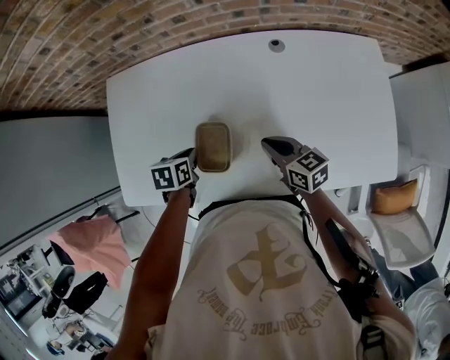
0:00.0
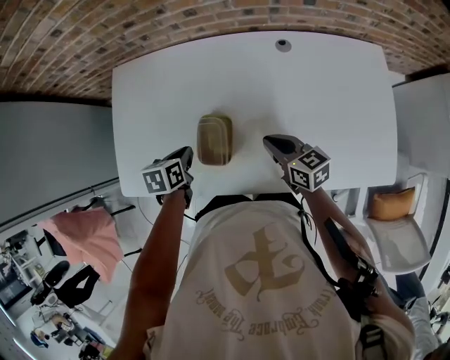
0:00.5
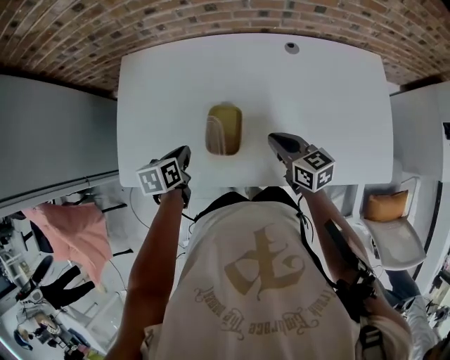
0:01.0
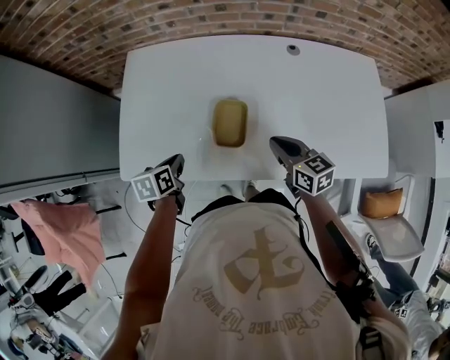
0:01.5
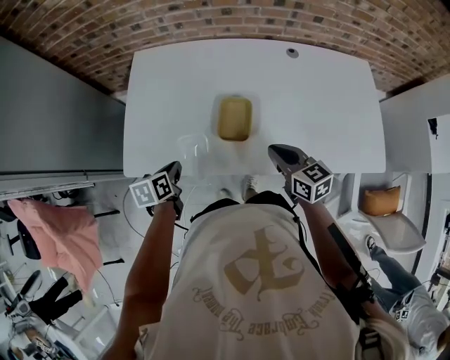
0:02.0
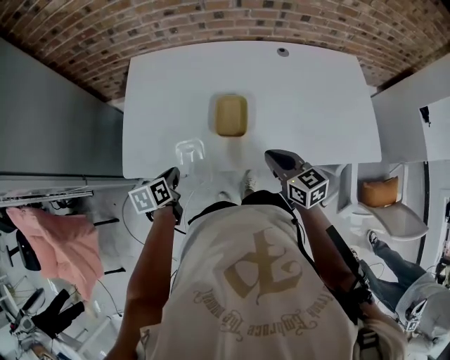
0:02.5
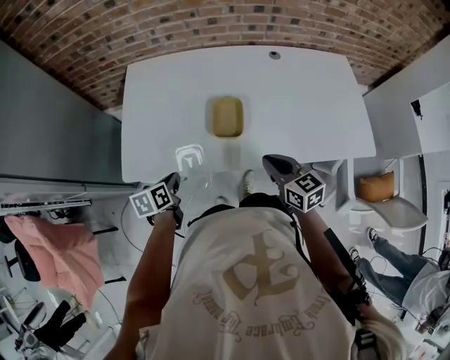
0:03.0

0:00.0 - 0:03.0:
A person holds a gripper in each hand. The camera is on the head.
0:00.0 - 0:01.5: The right gripper shifts approximately 10 cm backward and to the left; the left gripper shifts some 15 cm to the left and backward.
0:01.5 - 0:03.0: The grippers both shift backward and to the left by about 10 cm.

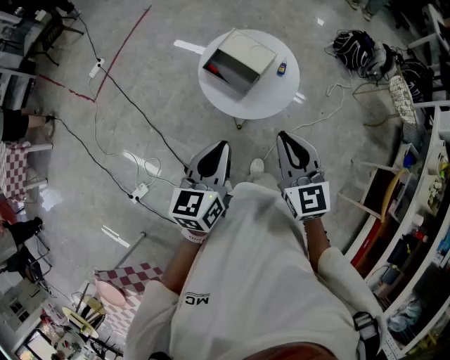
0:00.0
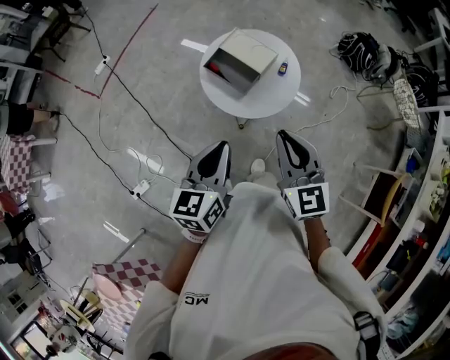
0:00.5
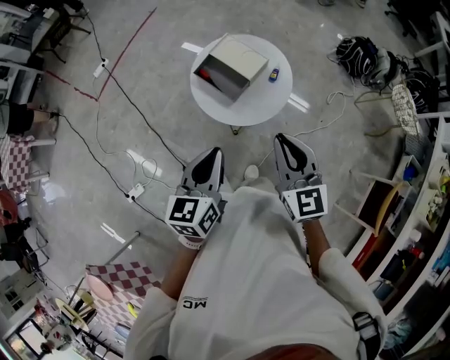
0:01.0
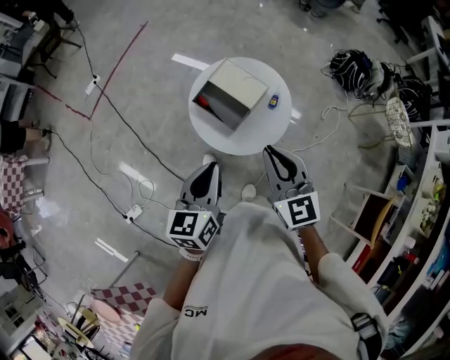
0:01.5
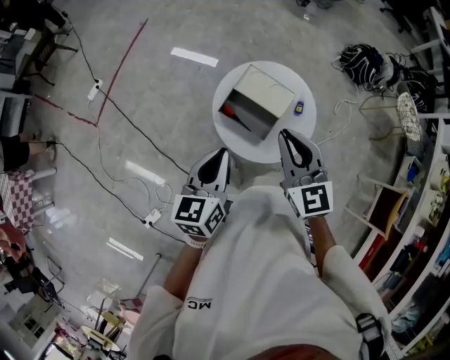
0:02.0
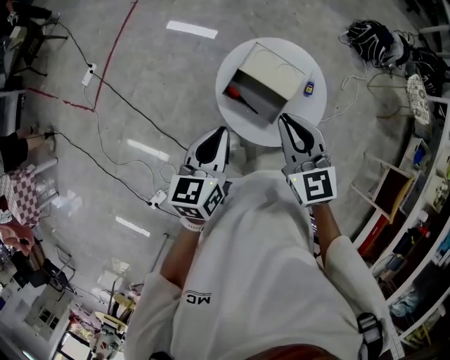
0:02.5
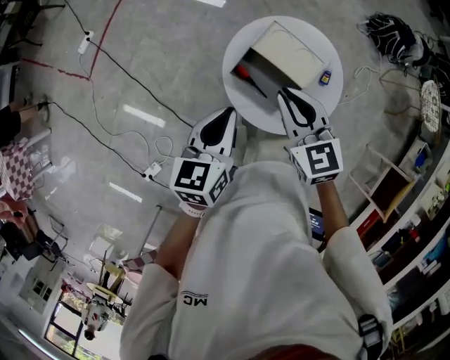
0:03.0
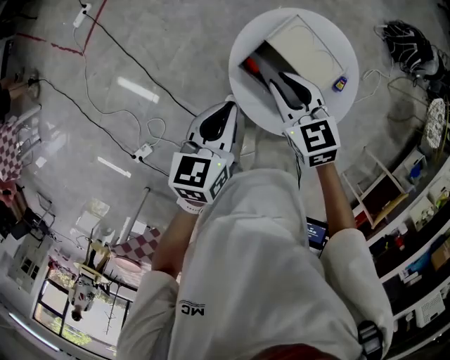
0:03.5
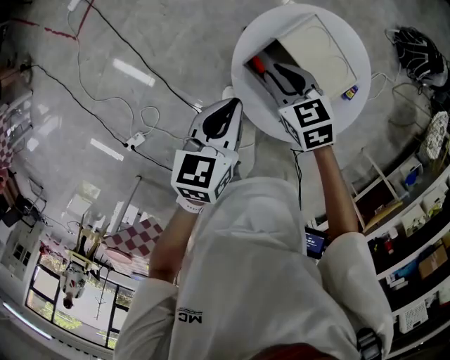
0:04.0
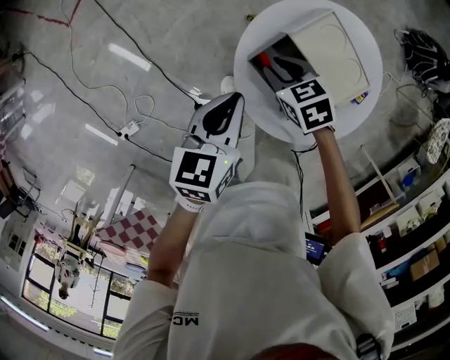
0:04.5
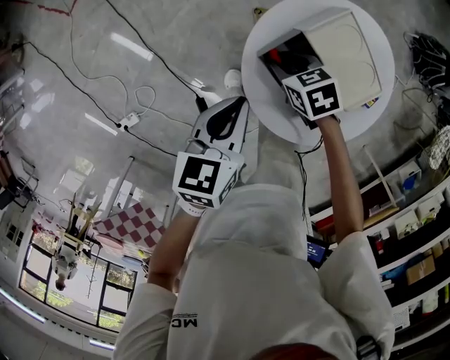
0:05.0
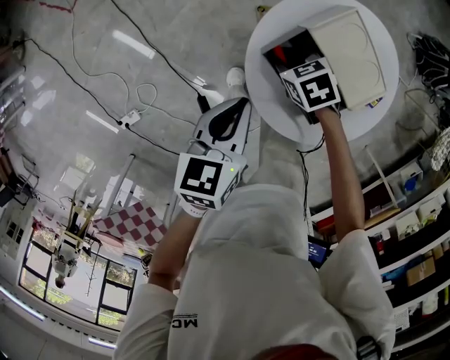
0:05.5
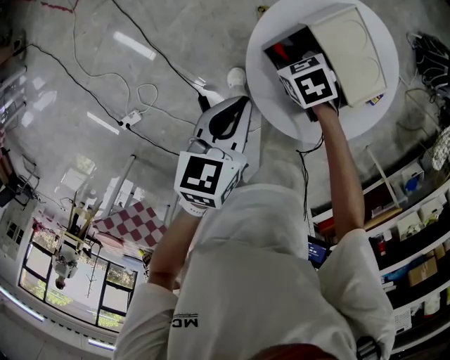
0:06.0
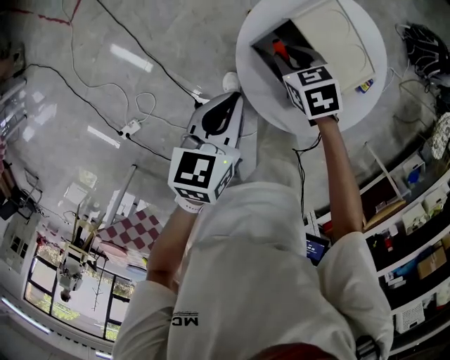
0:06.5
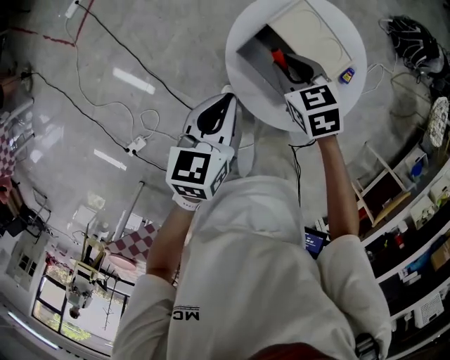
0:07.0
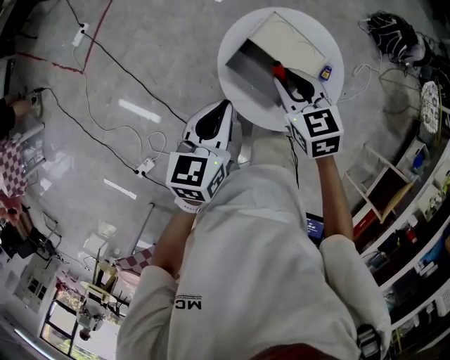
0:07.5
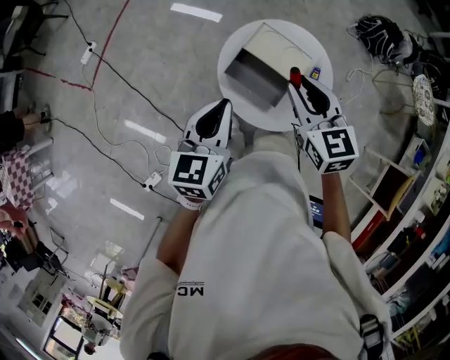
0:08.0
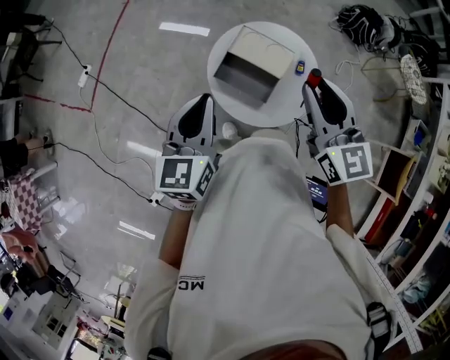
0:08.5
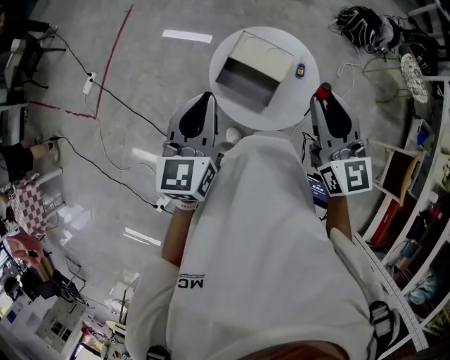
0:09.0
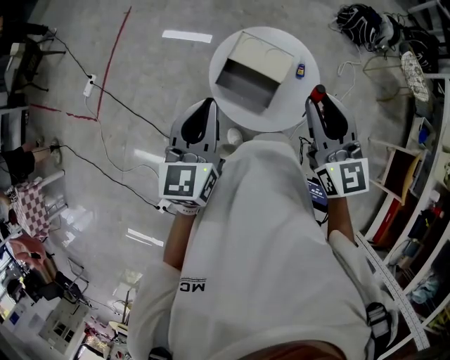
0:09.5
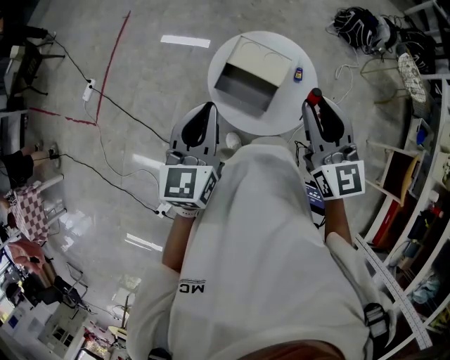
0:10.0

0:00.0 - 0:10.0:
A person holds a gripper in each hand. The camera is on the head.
0:00.0 - 0:02.0: Both grippers move forward, approximately 20 cm.
0:02.0 - 0:04.0: The left gripper moves downward and forward, approximately 20 cm; the right gripper moves downward and forward, roughly 30 cm, and points its fingers about 30 degrees further downward.
0:04.0 - 0:06.0: The left gripper is displaced downward by approximately 5 cm. The right gripper heads downward, covering about 15 cm, and swivels roughly 20 degrees.
0:06.0 - 0:08.0: The right gripper is displaced upward by roughly 40 cm, and tilts its fingers about 40 degrees upward, while the left gripper is displaced upward by some 20 cm, and rotates approximately 20 degrees.
0:08.0 - 0:10.0: The right gripper is displaced upward, backward and to the right by some 15 cm, and swivels approximately 20 degrees; the left gripper travels upward by some 5 cm.

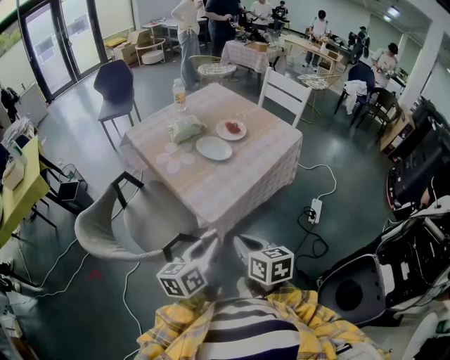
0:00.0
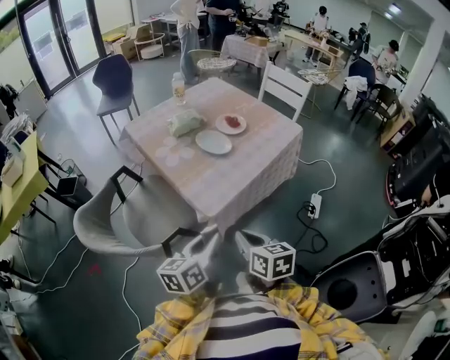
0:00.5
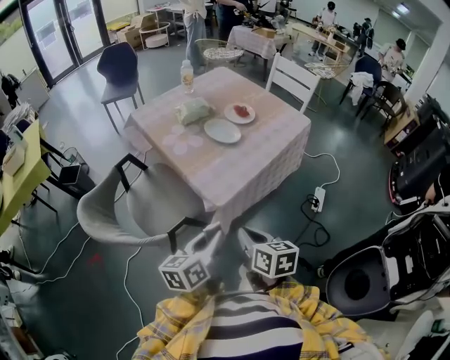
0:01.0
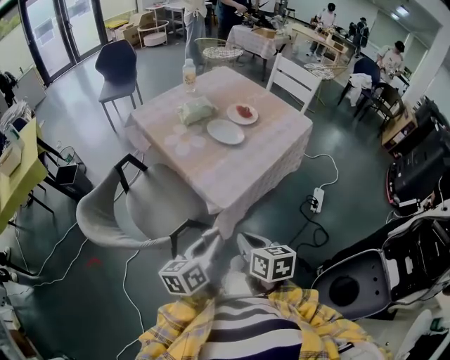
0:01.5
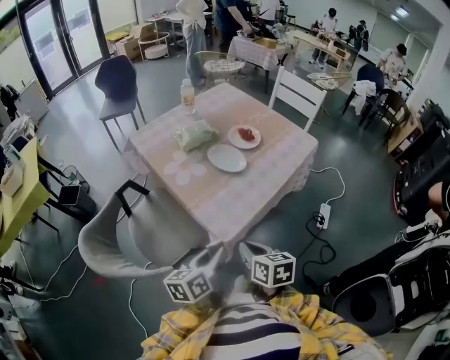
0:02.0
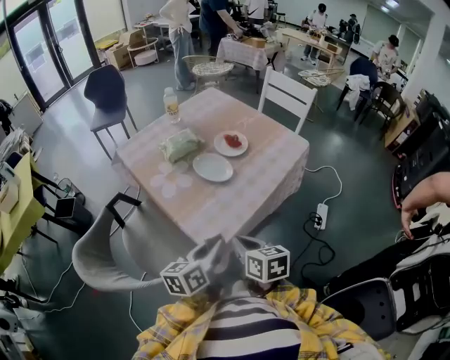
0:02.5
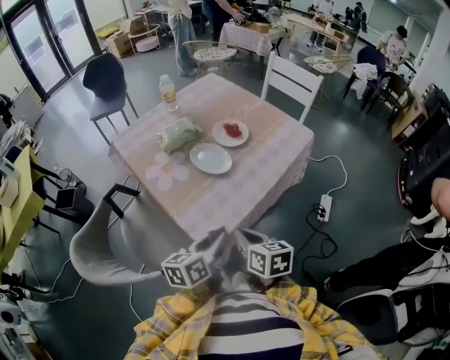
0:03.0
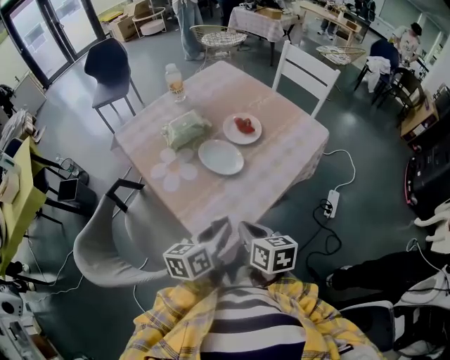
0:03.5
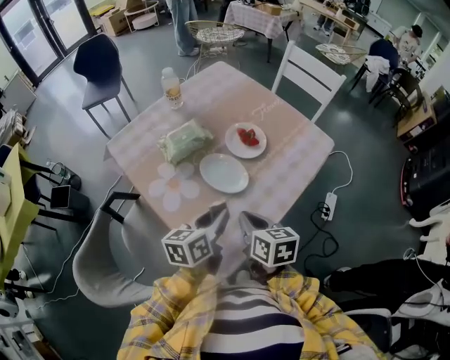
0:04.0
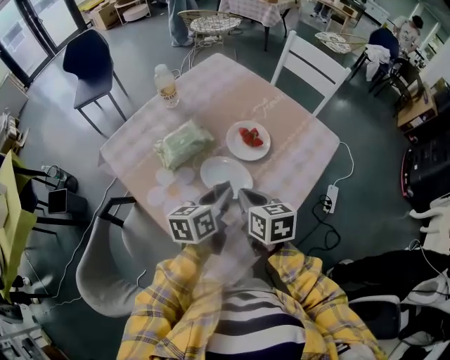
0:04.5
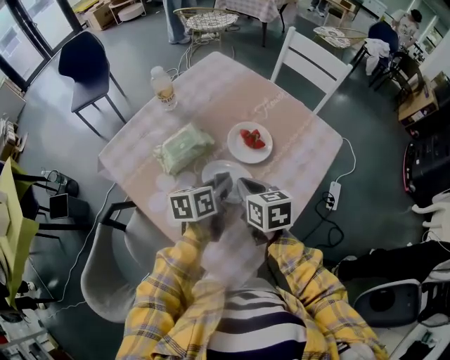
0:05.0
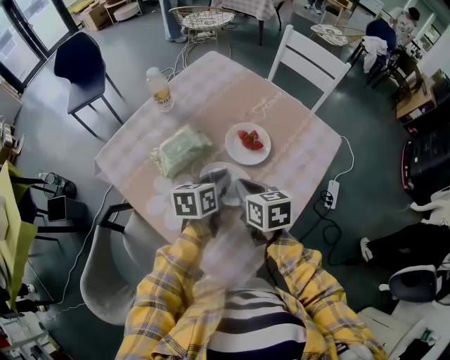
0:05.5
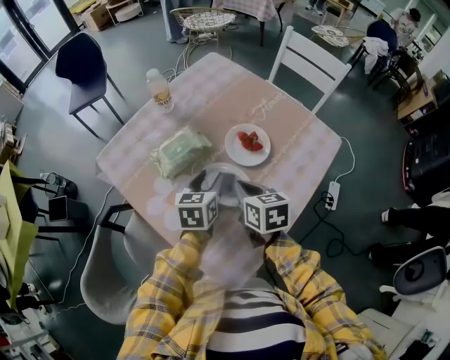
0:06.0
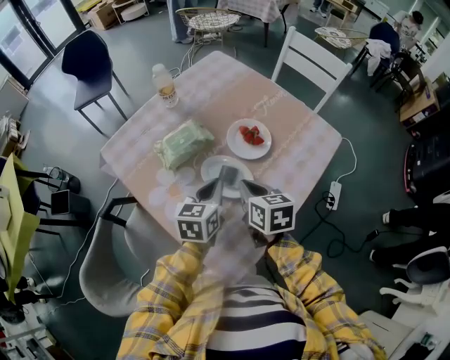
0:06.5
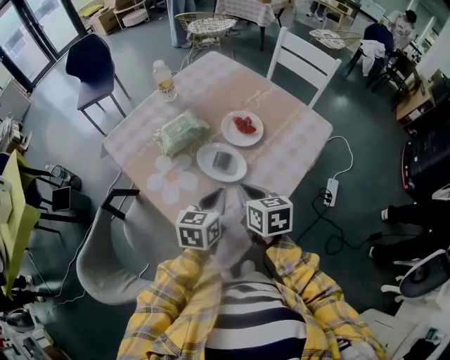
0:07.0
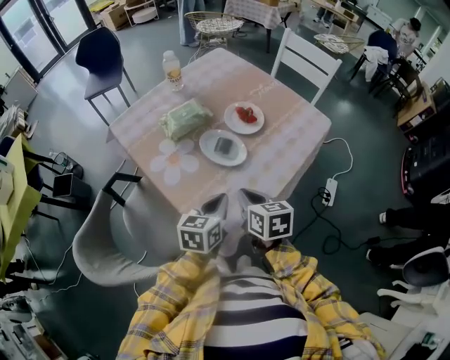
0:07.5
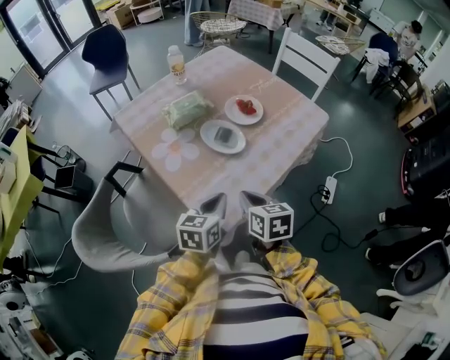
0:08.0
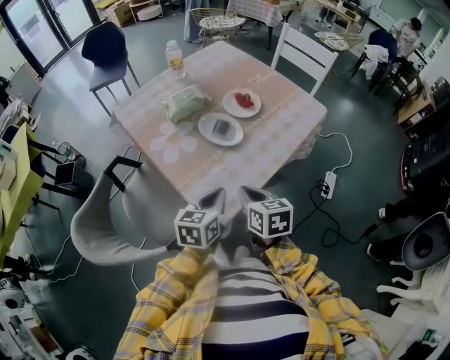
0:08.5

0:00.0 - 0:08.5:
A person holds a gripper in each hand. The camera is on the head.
0:00.0 - 0:02.0: Both grippers travel together forward, approximately 5 cm.
0:02.0 - 0:04.0: Both grippers travel together forward, roughly 20 cm.
0:04.0 - 0:06.5: The two grippers go approximately 10 cm forward. The left gripper closes its fingers.
0:06.5 - 0:08.5: Both grippers travel together backward, roughly 20 cm.

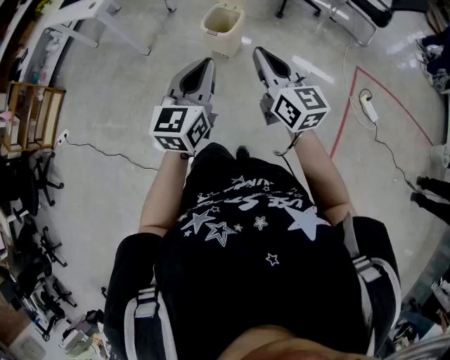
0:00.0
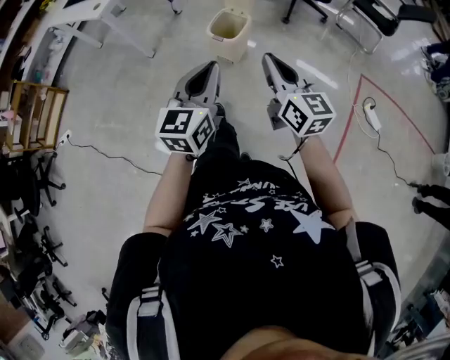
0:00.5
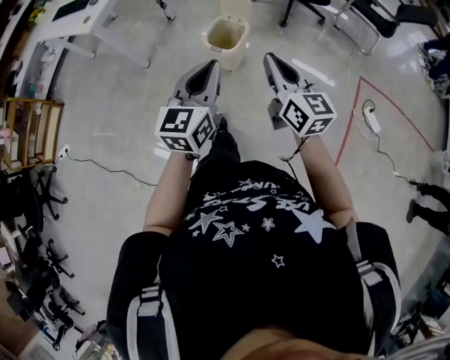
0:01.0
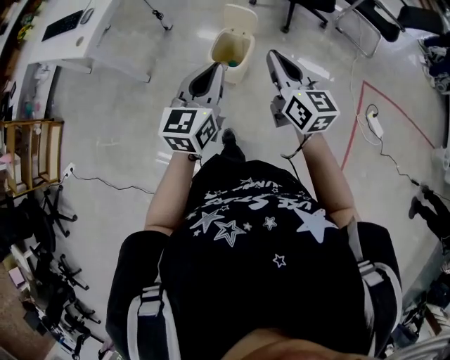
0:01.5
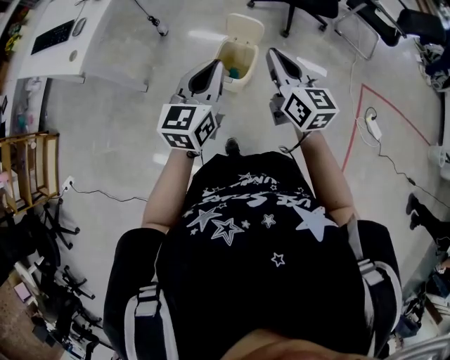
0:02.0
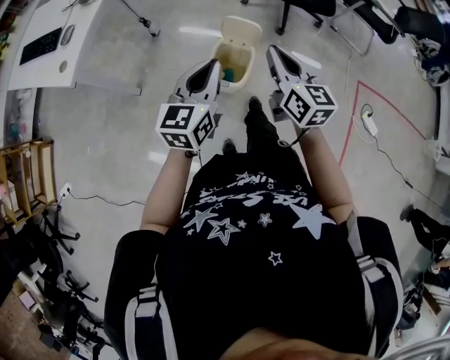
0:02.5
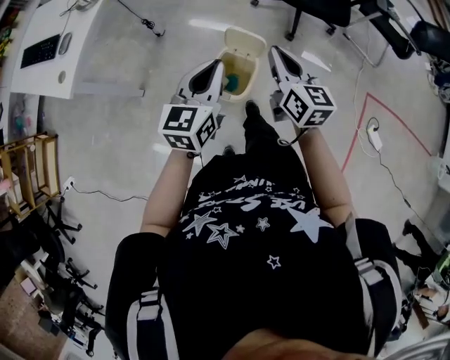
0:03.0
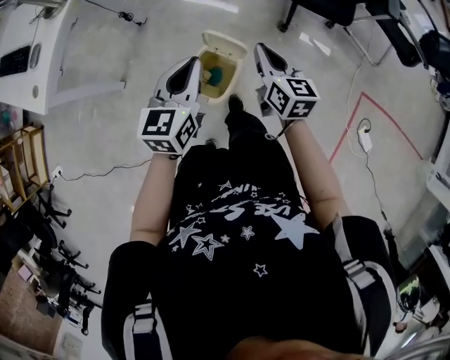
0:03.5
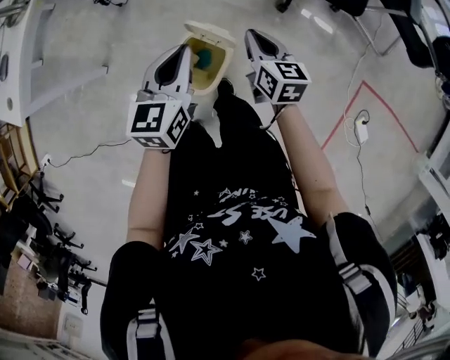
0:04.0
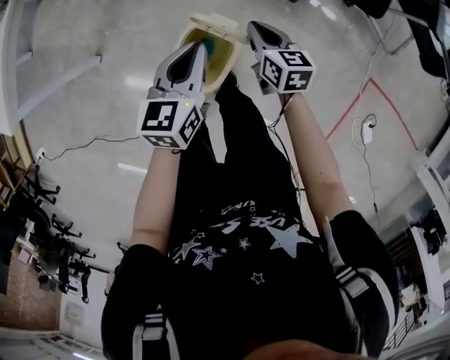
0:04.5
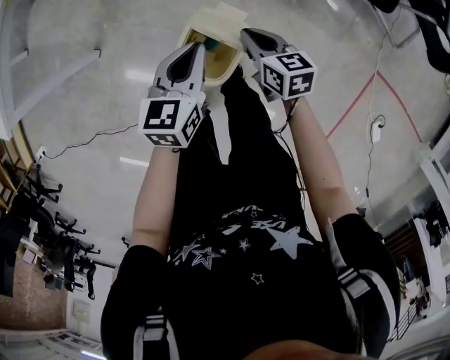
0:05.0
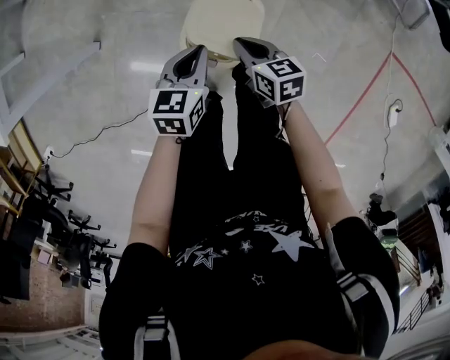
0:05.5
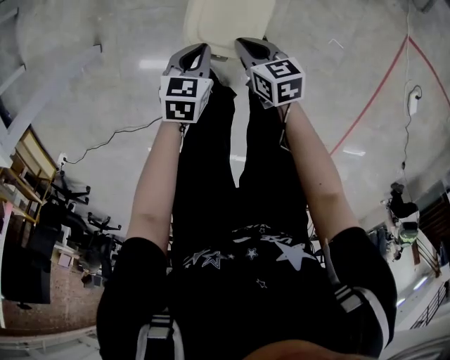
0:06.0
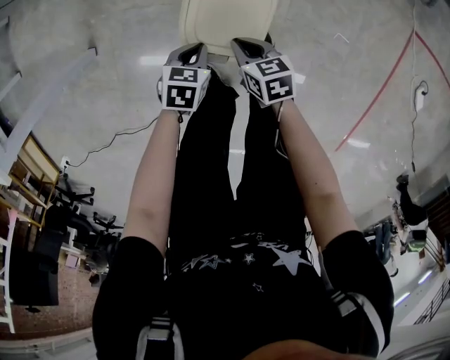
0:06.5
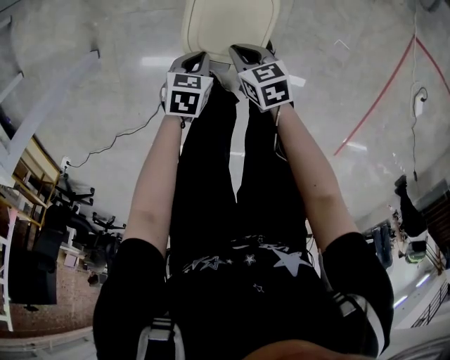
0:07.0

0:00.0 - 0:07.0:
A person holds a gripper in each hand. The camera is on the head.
0:00.0 - 0:02.0: The grippers both shift forward by some 35 cm.
0:02.0 - 0:03.5: The left gripper heads forward, covering some 25 cm. The right gripper heads forward and downward, covering approximately 30 cm.
0:03.5 - 0:05.0: Both grippers move downward, roughly 20 cm. The right gripper swivels about 30 degrees.
0:05.0 - 0:07.0: The left gripper travels downward by approximately 30 cm, and tilts its fingers roughly 30 degrees downward. The right gripper travels downward, backward and to the left by some 25 cm.
